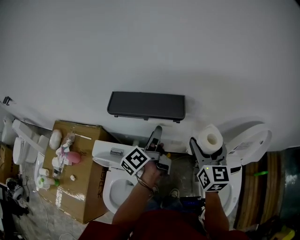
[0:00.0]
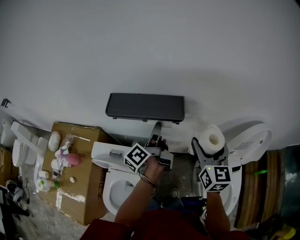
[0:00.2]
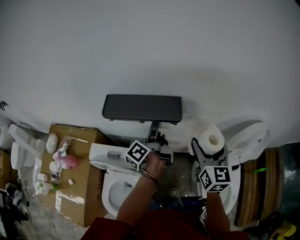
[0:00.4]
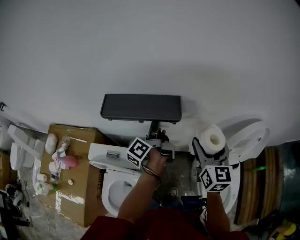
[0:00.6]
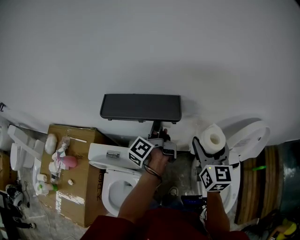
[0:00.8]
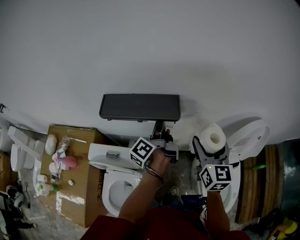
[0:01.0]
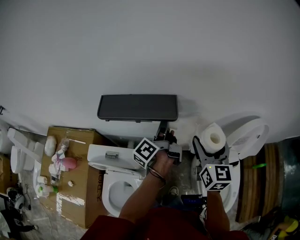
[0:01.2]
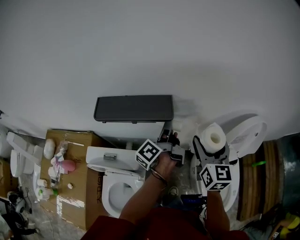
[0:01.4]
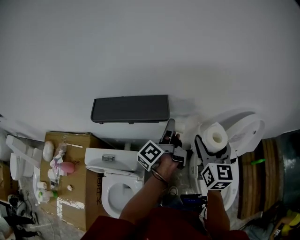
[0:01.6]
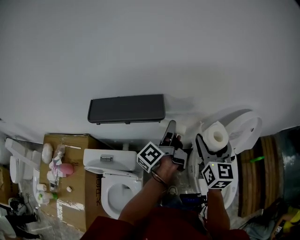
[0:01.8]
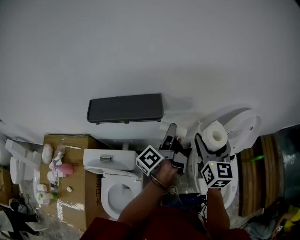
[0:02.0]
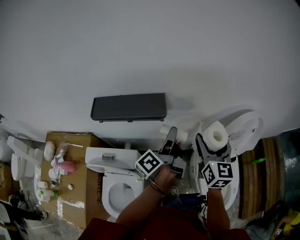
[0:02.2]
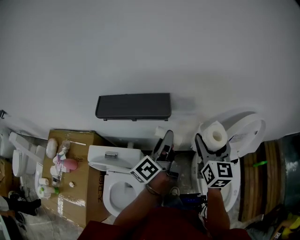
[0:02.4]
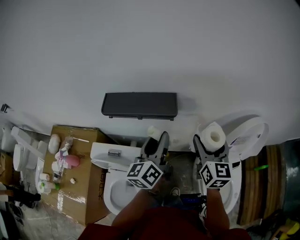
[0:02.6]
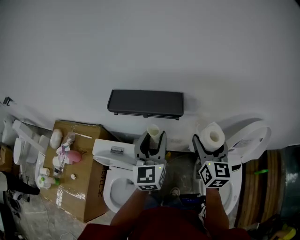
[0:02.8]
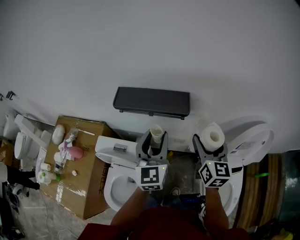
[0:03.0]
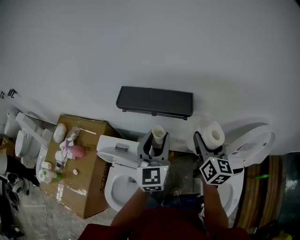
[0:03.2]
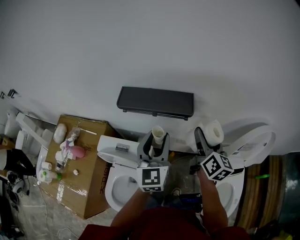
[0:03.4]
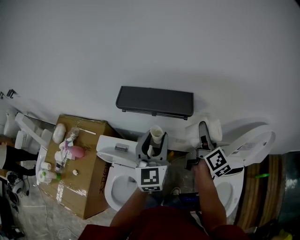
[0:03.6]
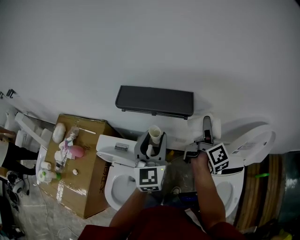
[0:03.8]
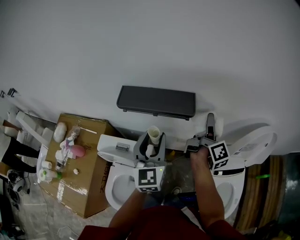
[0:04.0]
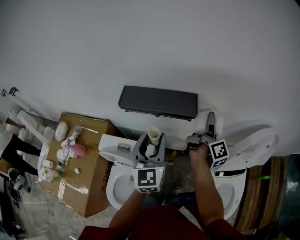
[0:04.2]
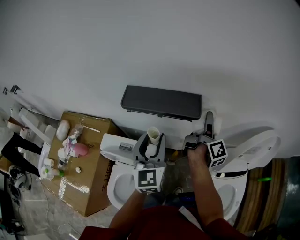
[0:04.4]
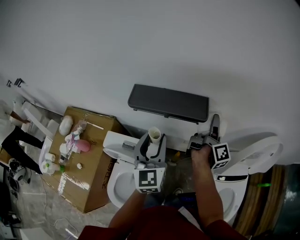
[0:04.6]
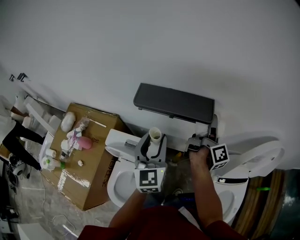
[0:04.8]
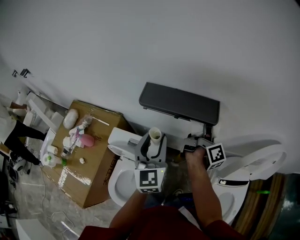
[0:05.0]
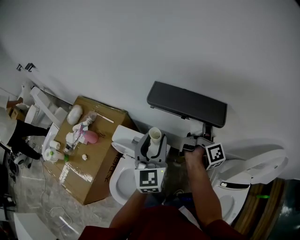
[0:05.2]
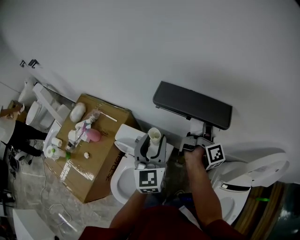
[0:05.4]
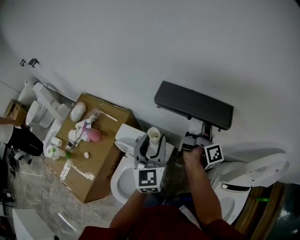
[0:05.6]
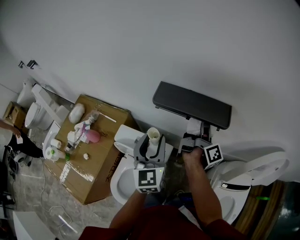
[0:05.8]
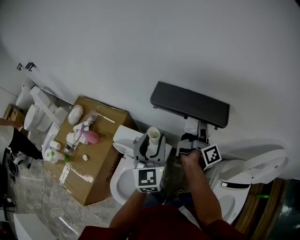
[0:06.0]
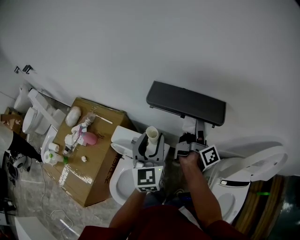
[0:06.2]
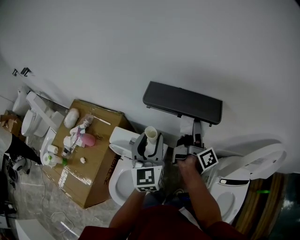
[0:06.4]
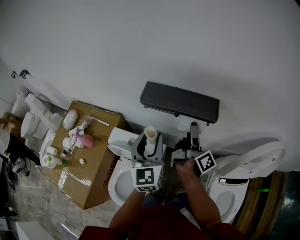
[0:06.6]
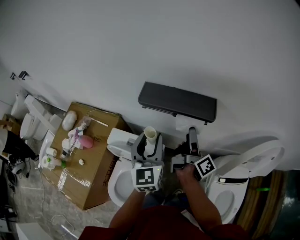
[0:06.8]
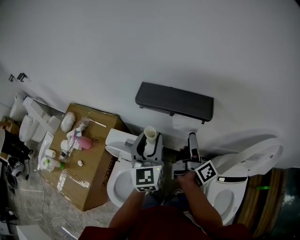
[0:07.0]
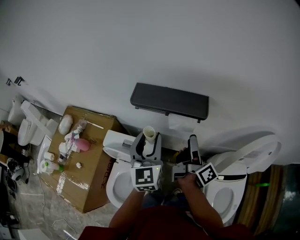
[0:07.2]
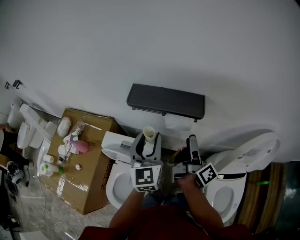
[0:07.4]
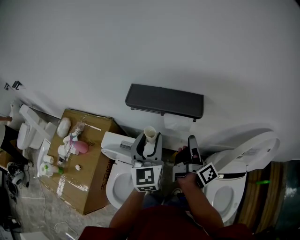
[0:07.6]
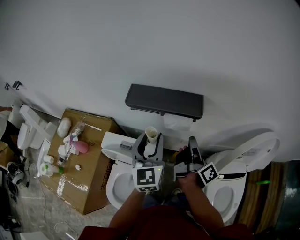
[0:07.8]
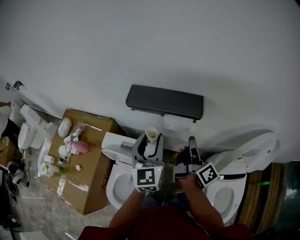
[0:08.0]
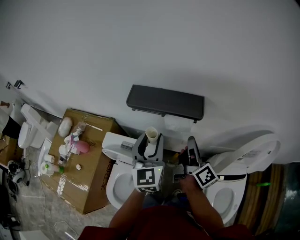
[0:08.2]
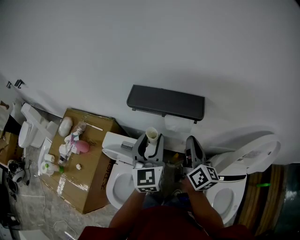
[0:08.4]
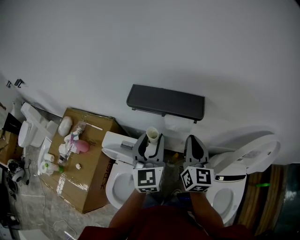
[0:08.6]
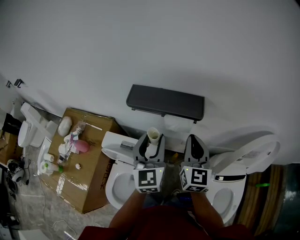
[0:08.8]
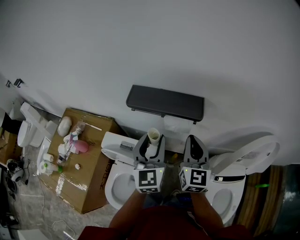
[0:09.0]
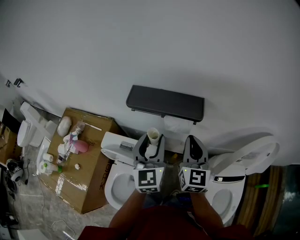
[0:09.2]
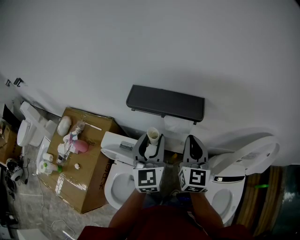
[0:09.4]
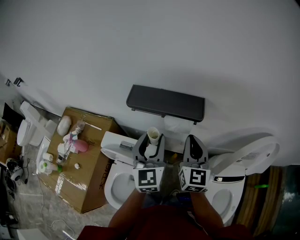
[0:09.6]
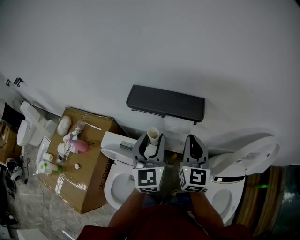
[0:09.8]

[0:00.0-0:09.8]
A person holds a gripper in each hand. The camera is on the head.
0:00.0 to 0:01.4: The left gripper moves to the right, about 10 cm.
0:01.4 to 0:02.8: The left gripper moves backward, upward and to the left, approximately 15 cm, and rotates around the line of its fingers by roughly 80 degrees, clockwise from behind.
0:02.8 to 0:04.2: The right gripper is displaced forward by some 10 cm, and rotates around the line of its fingers by some 70 degrees, clockwise from behind, while the left gripper goes approximately 5 cm to the left.
0:04.2 to 0:05.6: Both grippers travel together to the left, some 15 cm.
0:05.6 to 0:07.0: The right gripper moves backward, about 10 cm.
0:07.0 to 0:08.4: The right gripper turns by roughly 40 degrees, and closes its fingers.
0:08.4 to 0:09.8: The right gripper rolls counterclockwise, seen from behind, by roughly 40 degrees.

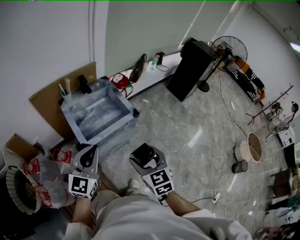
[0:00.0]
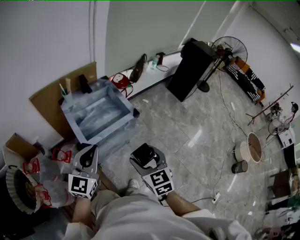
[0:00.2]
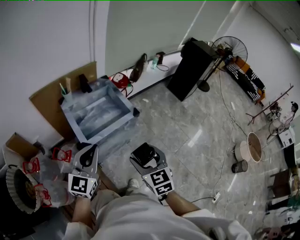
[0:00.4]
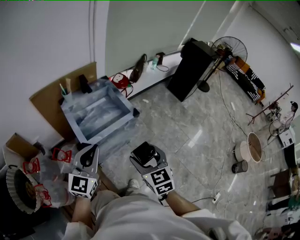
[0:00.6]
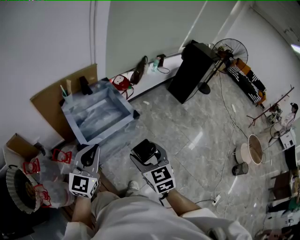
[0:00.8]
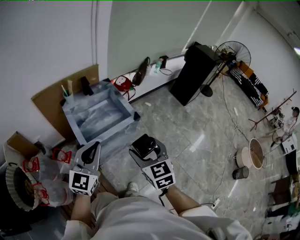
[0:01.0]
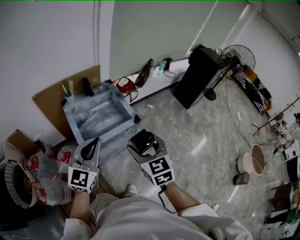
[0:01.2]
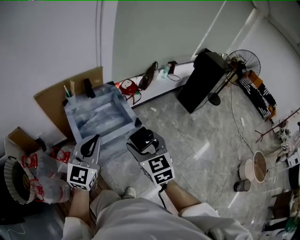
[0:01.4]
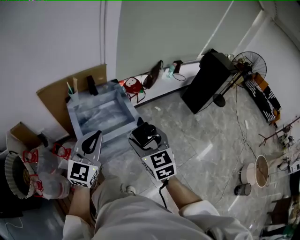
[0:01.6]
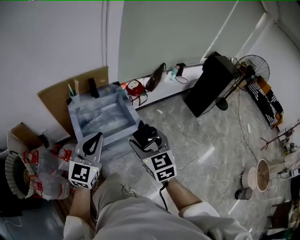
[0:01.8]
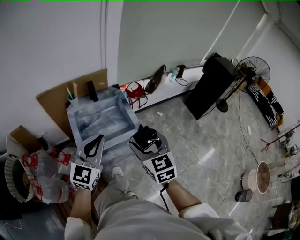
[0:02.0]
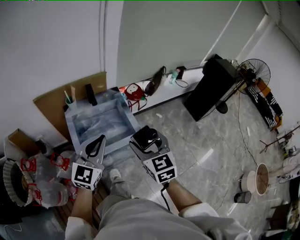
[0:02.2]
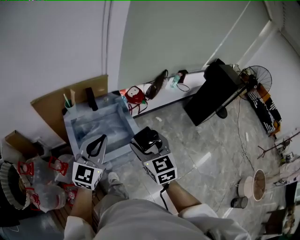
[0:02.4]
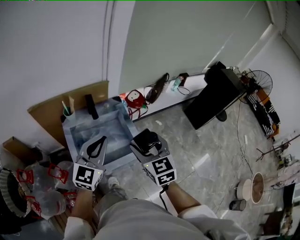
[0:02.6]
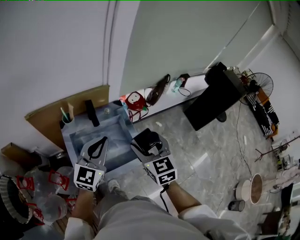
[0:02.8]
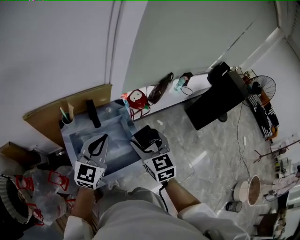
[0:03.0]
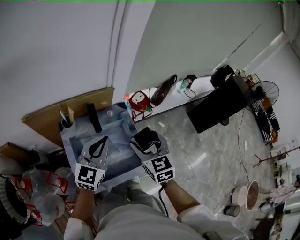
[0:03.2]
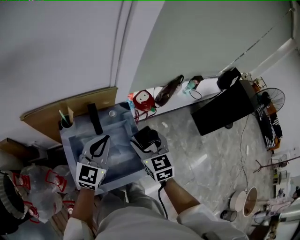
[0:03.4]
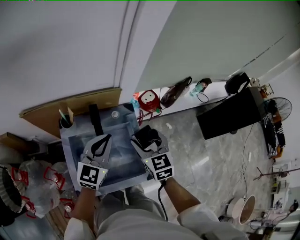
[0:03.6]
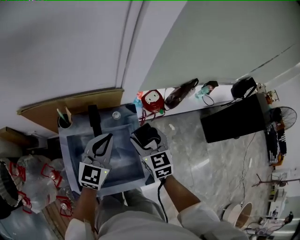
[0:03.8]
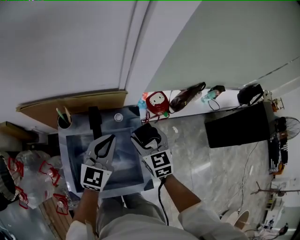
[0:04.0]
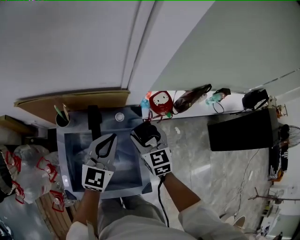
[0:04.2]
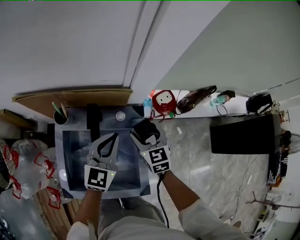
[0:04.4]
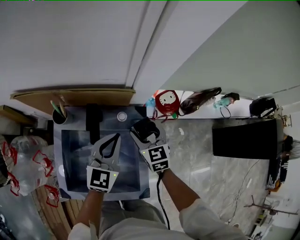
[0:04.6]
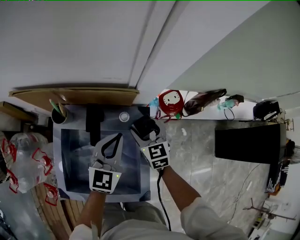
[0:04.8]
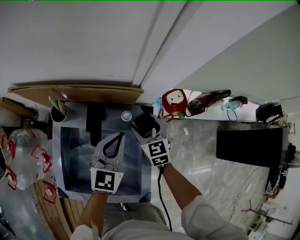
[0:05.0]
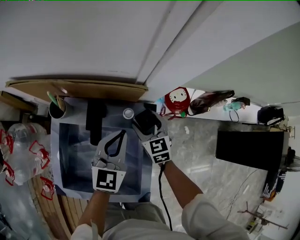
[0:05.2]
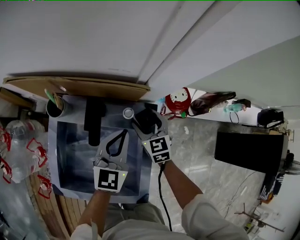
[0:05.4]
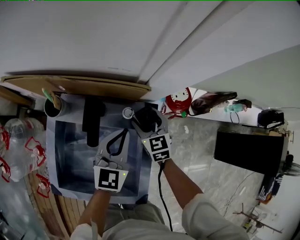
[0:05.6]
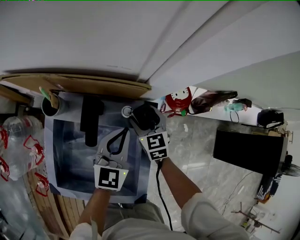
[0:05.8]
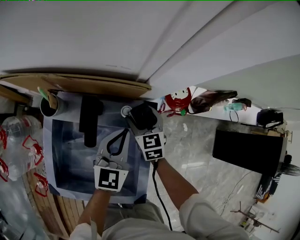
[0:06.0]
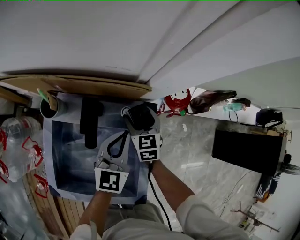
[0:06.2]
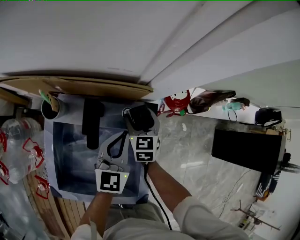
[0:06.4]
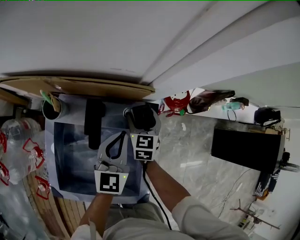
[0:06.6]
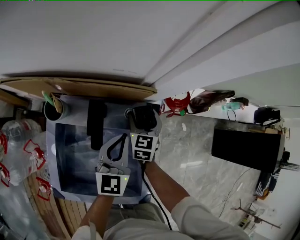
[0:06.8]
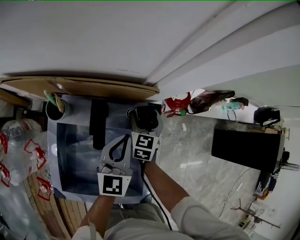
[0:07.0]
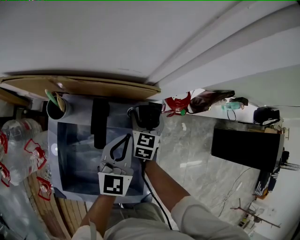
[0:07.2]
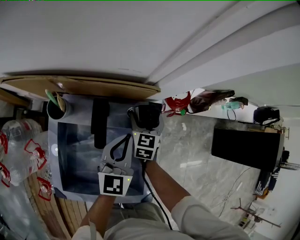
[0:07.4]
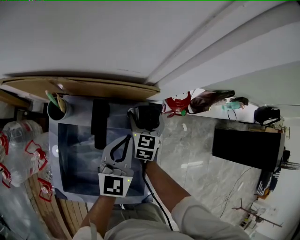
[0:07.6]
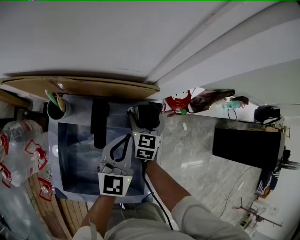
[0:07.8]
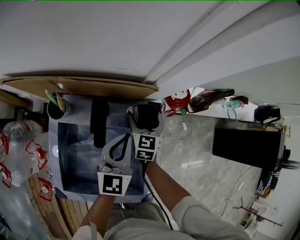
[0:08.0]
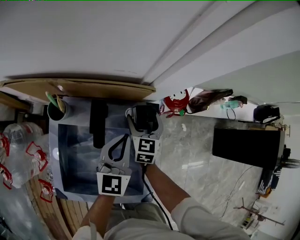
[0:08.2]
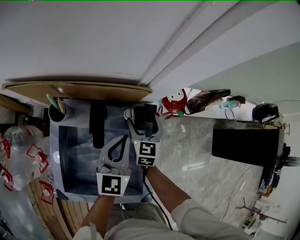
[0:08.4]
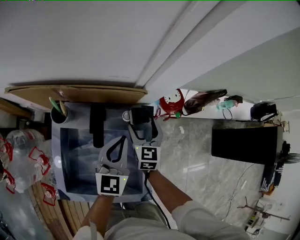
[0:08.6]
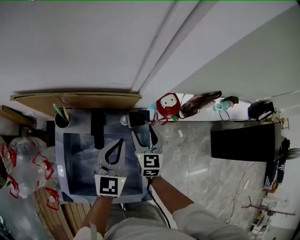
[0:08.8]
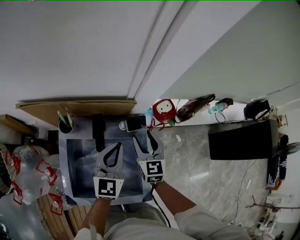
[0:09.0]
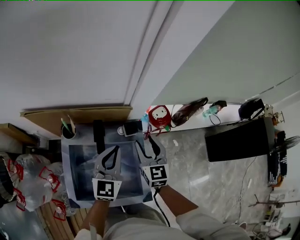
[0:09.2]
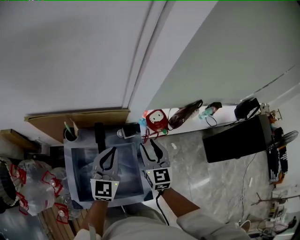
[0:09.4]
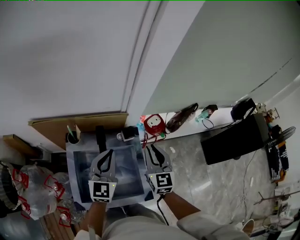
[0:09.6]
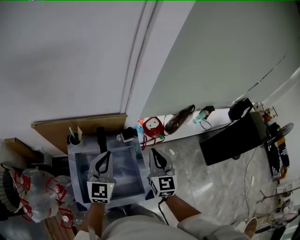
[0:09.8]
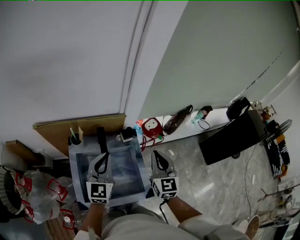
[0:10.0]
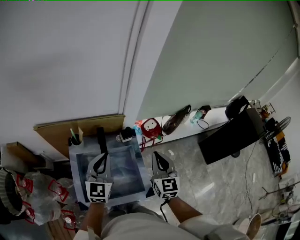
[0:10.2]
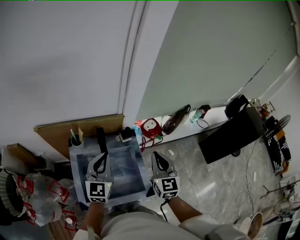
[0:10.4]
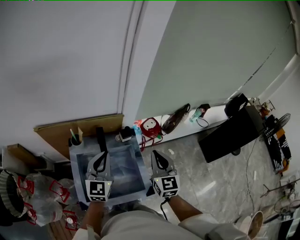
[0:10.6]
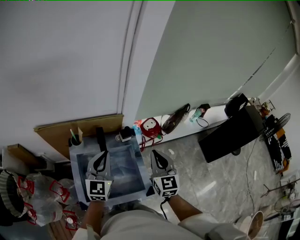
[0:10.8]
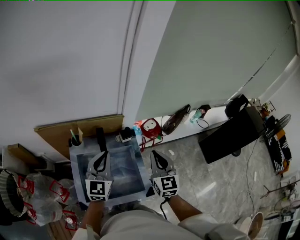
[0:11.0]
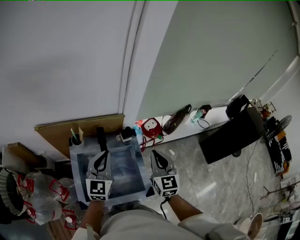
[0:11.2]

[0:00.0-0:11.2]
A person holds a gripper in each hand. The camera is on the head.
0:00.0 to 0:01.6: The left gripper is displaced forward and to the right by approximately 10 cm, while the right gripper travels forward and upward by roughly 15 cm.
0:01.6 to 0:03.2: The two grippers go approximately 35 cm forward.
0:03.2 to 0:04.8: The left gripper moves forward and downward, some 20 cm, and rotates some 20 degrees, while the right gripper goes about 35 cm downward and forward, and rotates approximately 20 degrees.
0:04.8 to 0:06.4: The two grippers go approximately 5 cm downward.
0:06.4 to 0:08.0: There are only small adjustments of the grippers.
0:08.0 to 0:09.6: The right gripper moves upward and backward, roughly 30 cm, and closes up; the left gripper shifts some 20 cm upward.
0:09.6 to 0:11.2: The right gripper is displaced backward by approximately 5 cm.

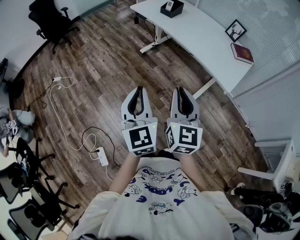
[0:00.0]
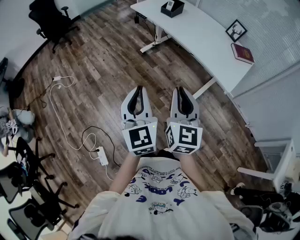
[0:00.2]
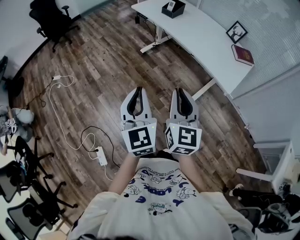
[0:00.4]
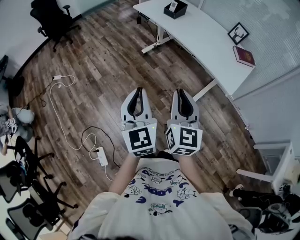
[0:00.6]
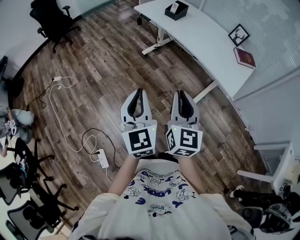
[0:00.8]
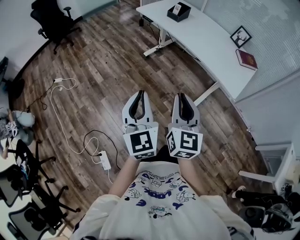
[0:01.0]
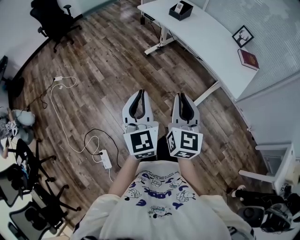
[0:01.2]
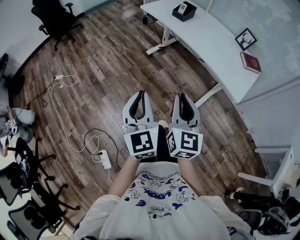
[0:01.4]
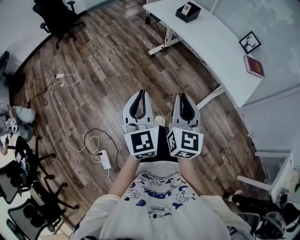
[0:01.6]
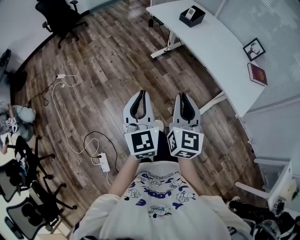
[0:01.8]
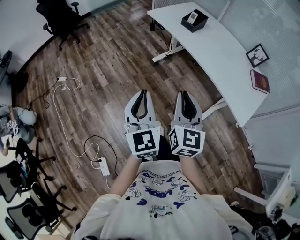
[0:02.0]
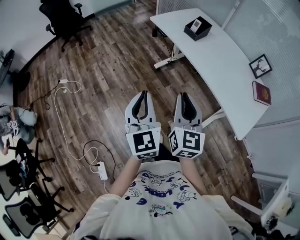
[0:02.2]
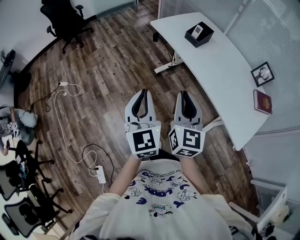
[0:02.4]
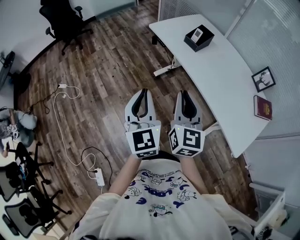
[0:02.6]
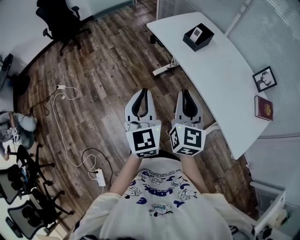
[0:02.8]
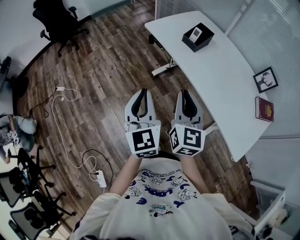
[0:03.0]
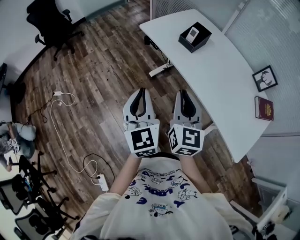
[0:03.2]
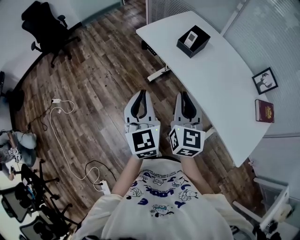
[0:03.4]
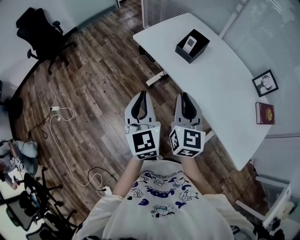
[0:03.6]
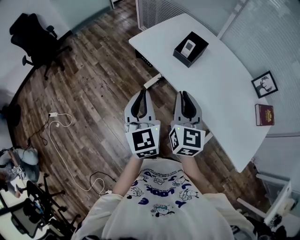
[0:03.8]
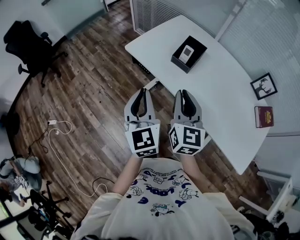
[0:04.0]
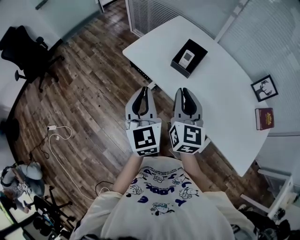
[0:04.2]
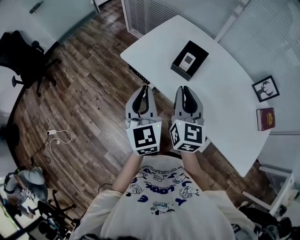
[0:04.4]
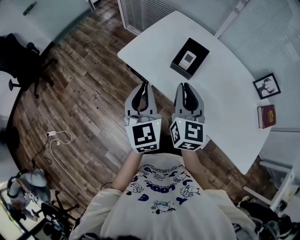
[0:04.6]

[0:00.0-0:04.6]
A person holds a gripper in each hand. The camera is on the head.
0:00.0 to 0:01.6: The right gripper goes approximately 10 cm forward and to the left, while the left gripper moves to the left and forward, approximately 10 cm.
0:01.6 to 0:03.0: The two grippers go approximately 35 cm forward.
0:03.0 to 0:04.6: The grippers both shift forward by about 35 cm.
